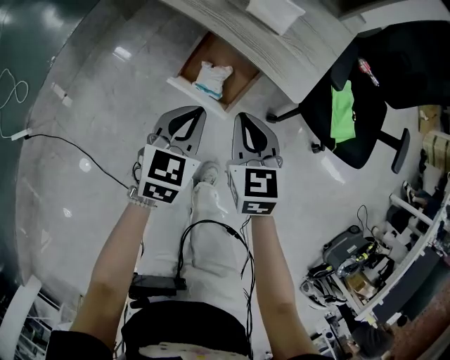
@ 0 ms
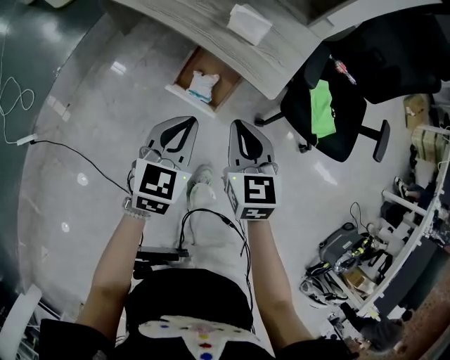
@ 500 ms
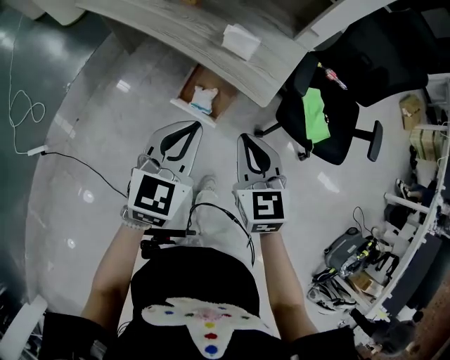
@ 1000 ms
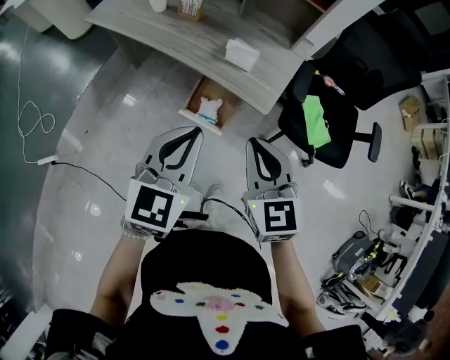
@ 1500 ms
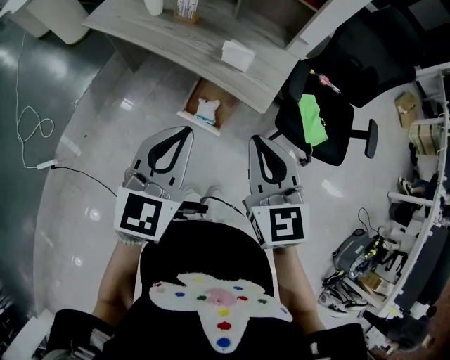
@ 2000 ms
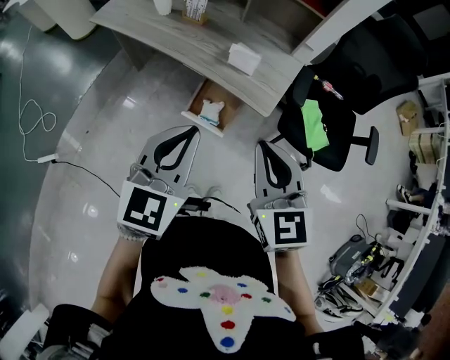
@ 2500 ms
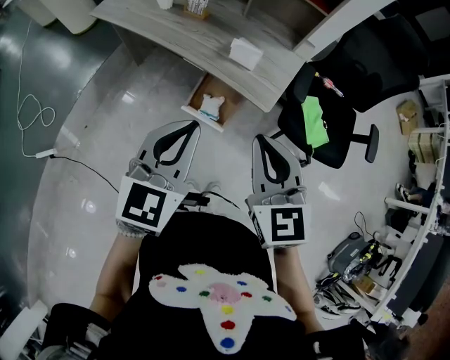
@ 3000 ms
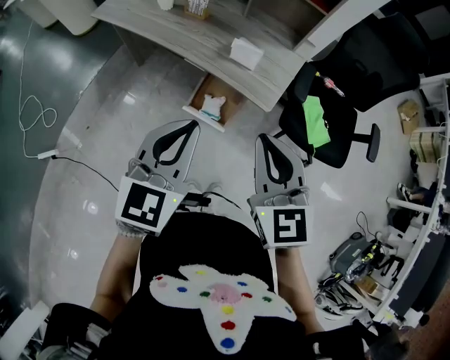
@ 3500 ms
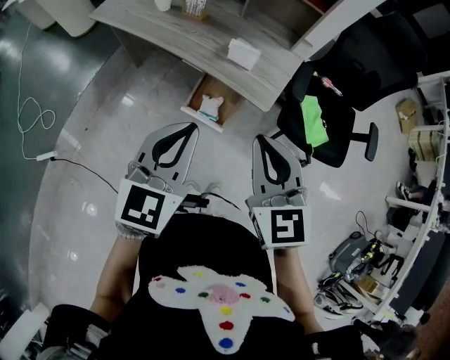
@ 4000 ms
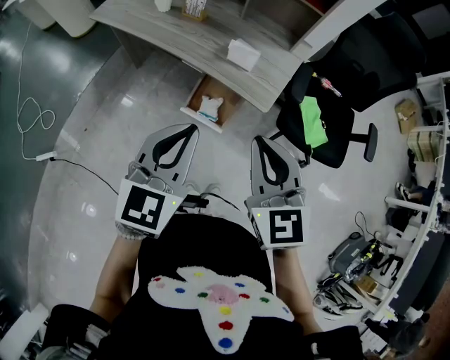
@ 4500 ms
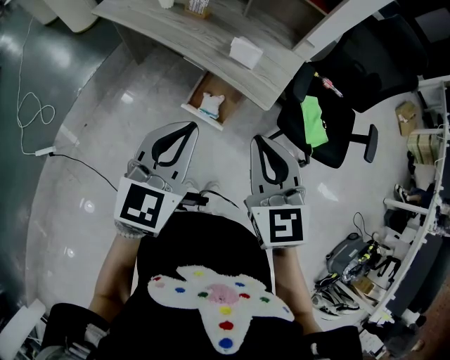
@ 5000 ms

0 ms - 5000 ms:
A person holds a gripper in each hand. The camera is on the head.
0 ms - 2500 ms: The grippers both shift upward by some 30 cm. The left gripper turns by approximately 20 degrees.
2500 ms - 5000 ms: Both grippers stay about where they are.

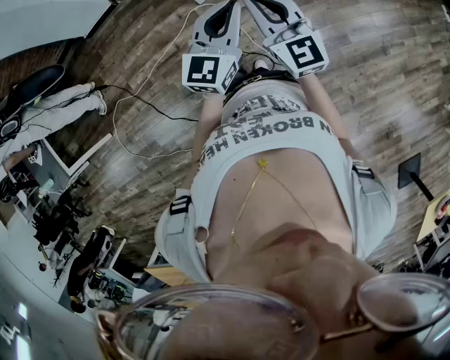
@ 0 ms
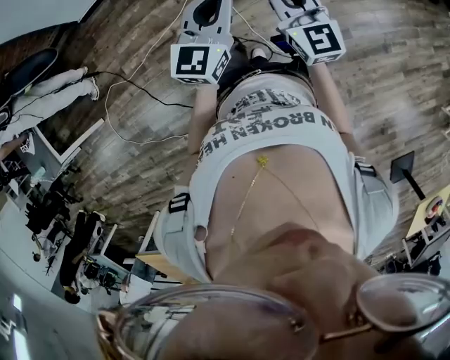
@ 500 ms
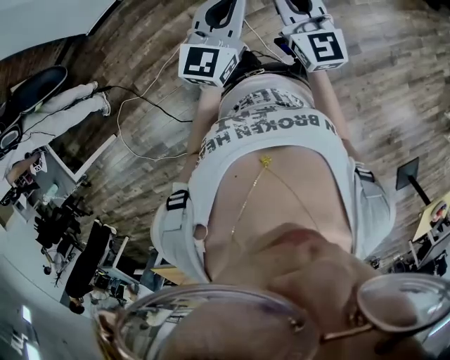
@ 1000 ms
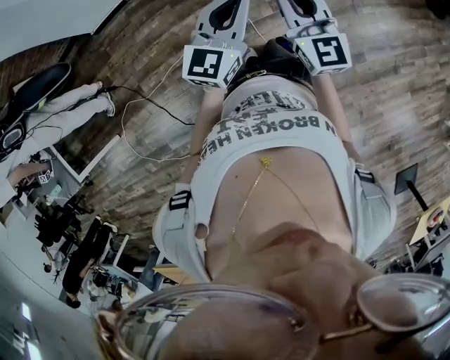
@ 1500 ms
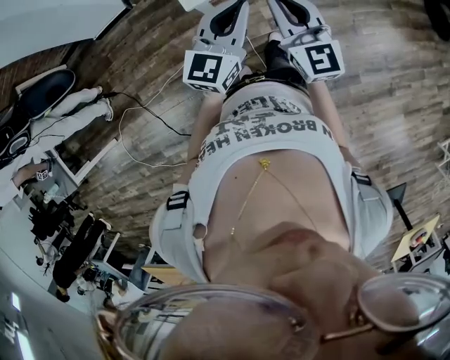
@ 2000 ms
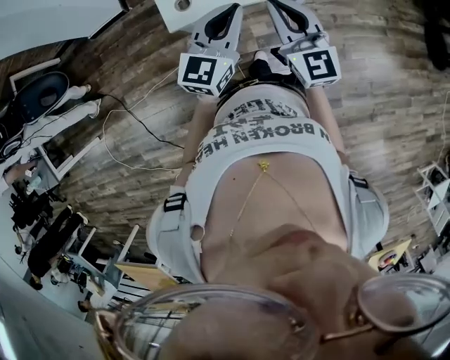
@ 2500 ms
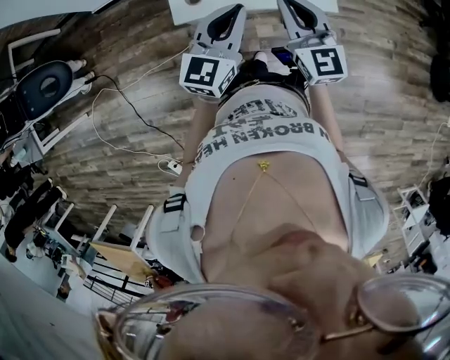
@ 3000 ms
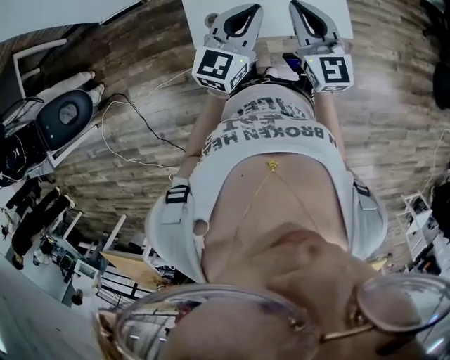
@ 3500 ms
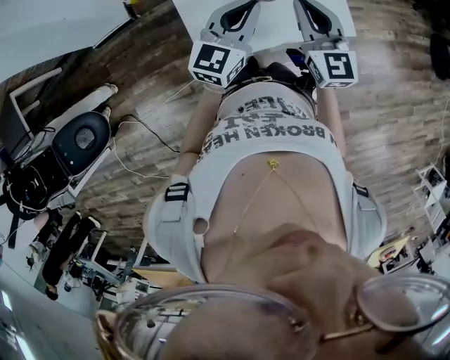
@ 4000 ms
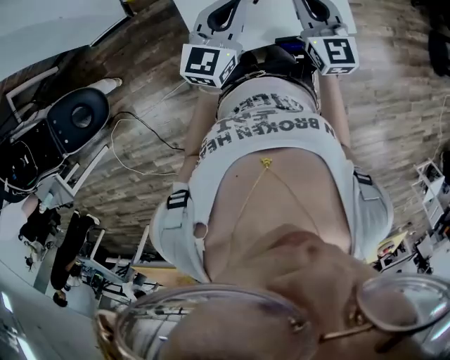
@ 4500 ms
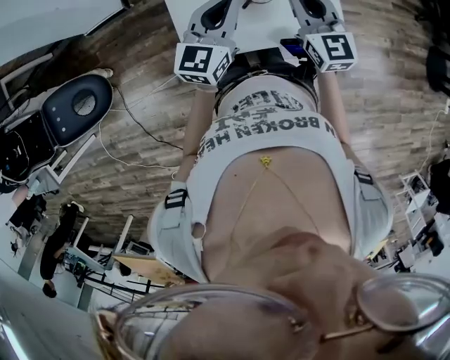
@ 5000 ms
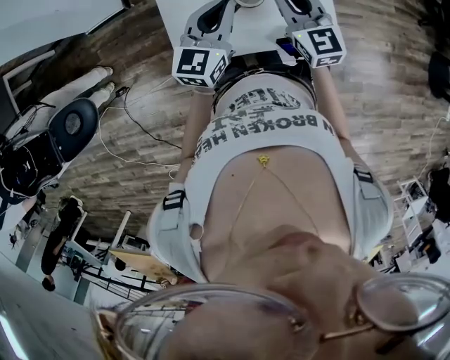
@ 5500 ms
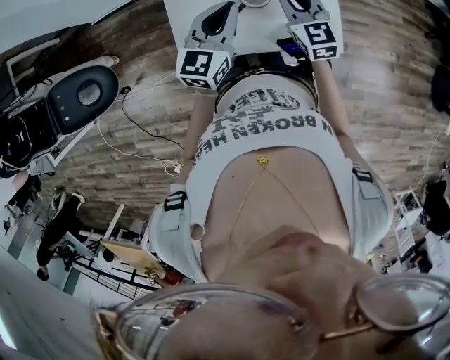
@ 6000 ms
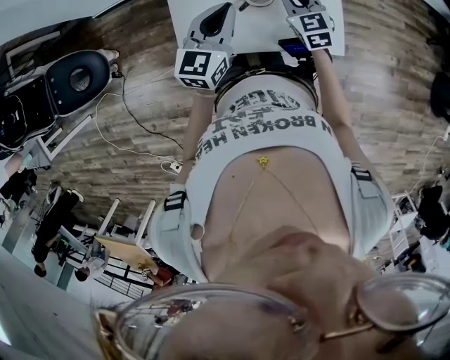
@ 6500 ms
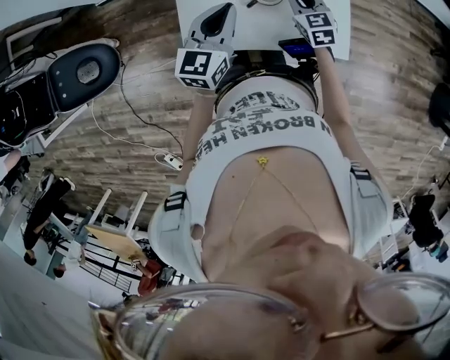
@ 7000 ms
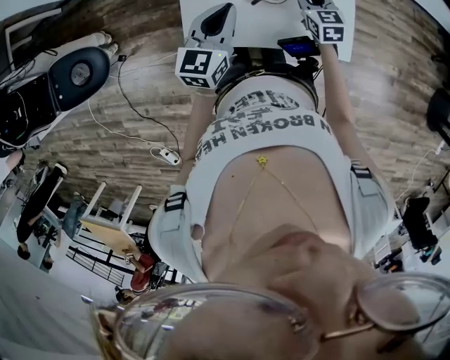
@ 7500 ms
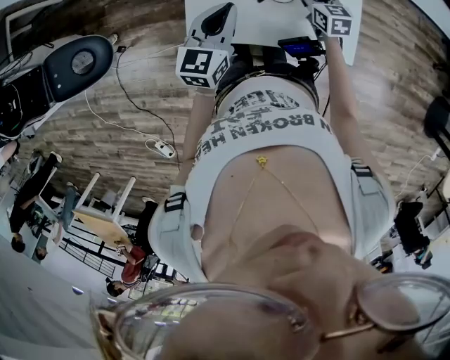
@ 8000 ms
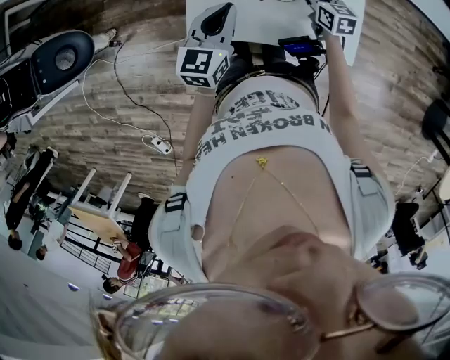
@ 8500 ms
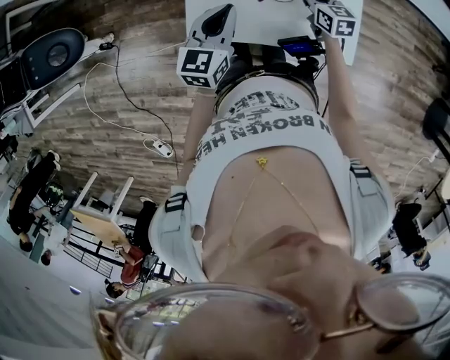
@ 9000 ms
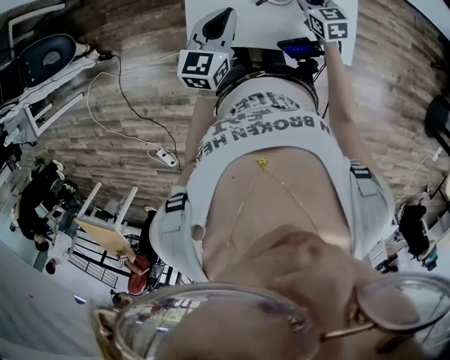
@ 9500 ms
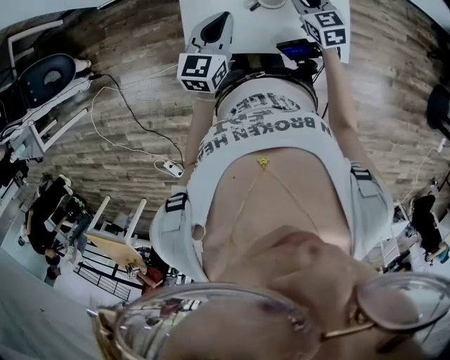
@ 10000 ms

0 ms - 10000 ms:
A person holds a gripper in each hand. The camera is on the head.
0 ms - 2000 ms: Both grippers travel together forward, approximately 30 cm.
2000 ms - 4000 ms: Both grippers travel together forward, some 35 cm.
4000 ms - 6000 ms: The left gripper goes some 5 cm to the left, while the right gripper is displaced downward and to the left by about 10 cm, and turns by about 20 degrees.
6000 ms - 8000 ms: The right gripper travels downward and forward by some 15 cm, swivels approximately 20 degrees, and opens up.
8000 ms - 10000 ms: The right gripper travels upward by roughly 5 cm, and closes its fingers.

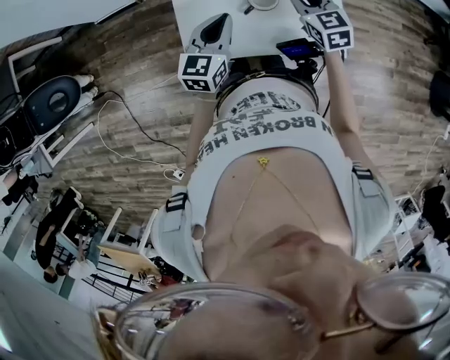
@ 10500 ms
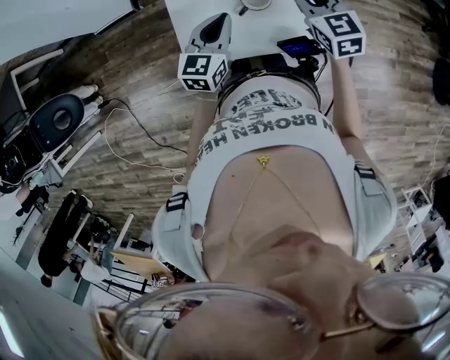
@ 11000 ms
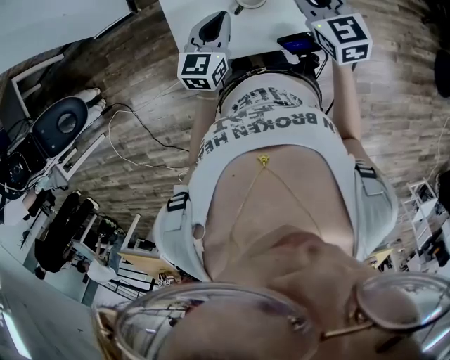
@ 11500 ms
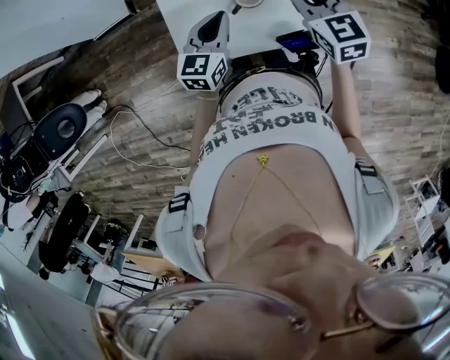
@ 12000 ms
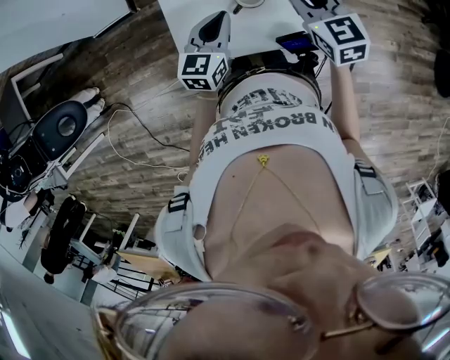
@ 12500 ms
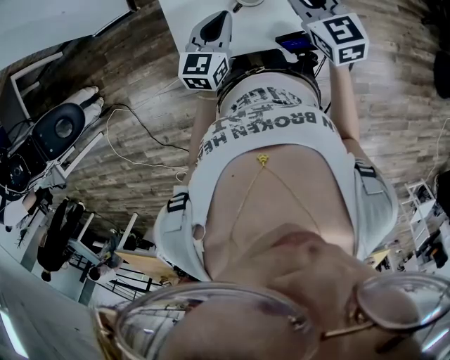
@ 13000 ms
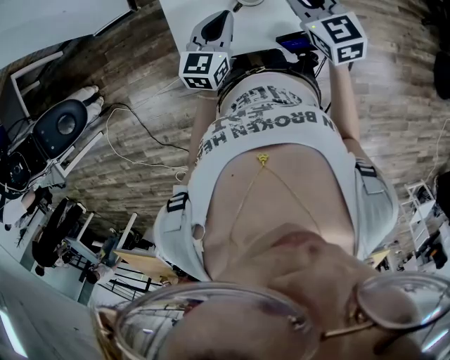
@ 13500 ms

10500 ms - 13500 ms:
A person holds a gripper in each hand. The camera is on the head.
10500 ms - 12000 ms: The left gripper is displaced to the right by roughly 5 cm. Meanwhile the right gripper goes approximately 10 cm upward.
12000 ms - 13500 ms: The grippers make only small movements.

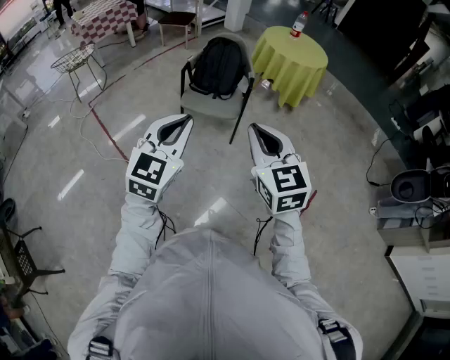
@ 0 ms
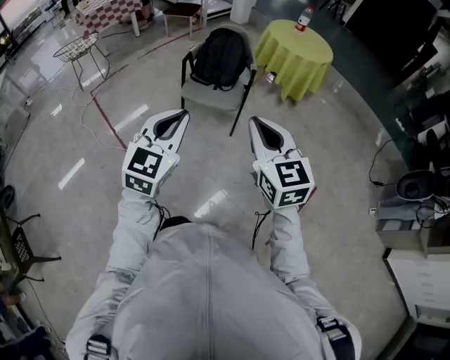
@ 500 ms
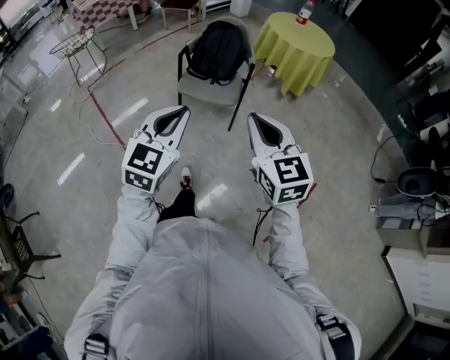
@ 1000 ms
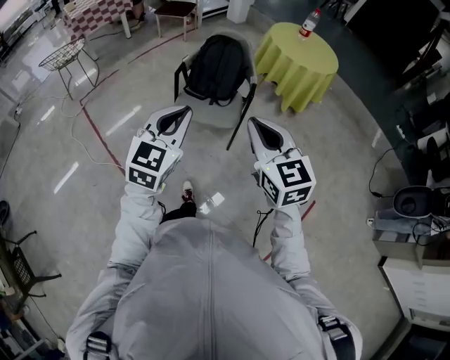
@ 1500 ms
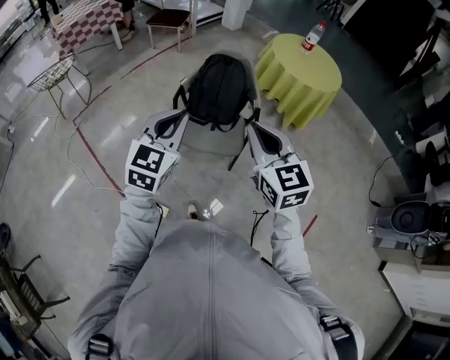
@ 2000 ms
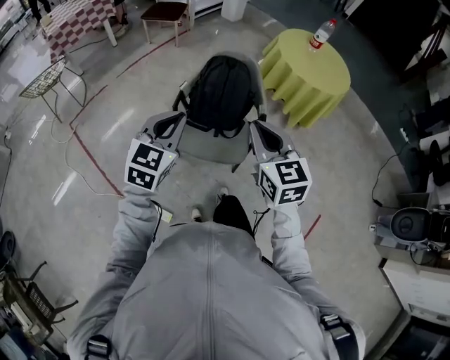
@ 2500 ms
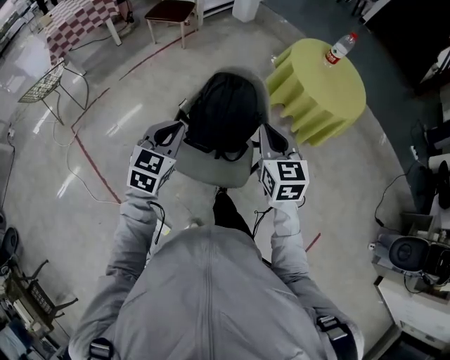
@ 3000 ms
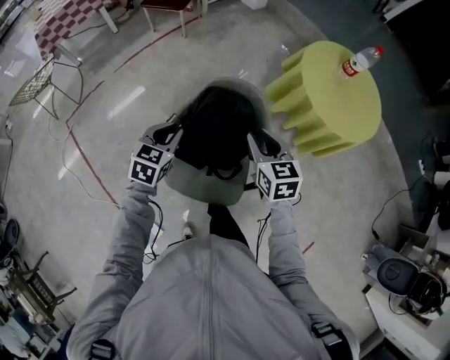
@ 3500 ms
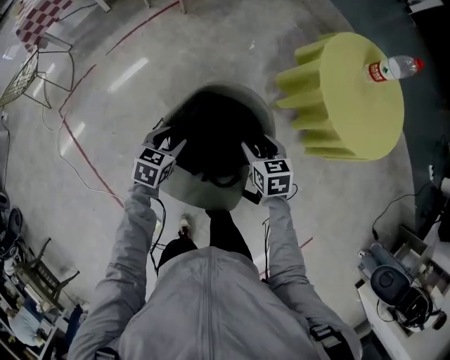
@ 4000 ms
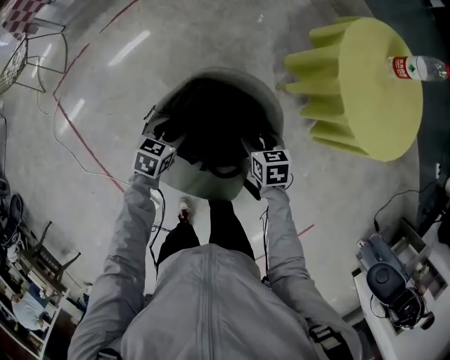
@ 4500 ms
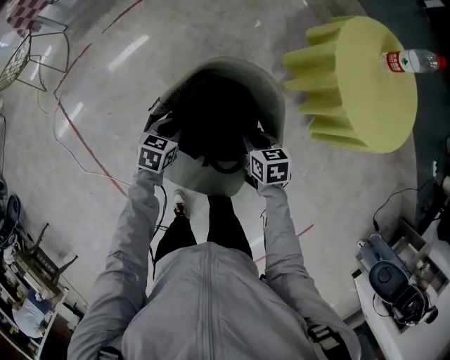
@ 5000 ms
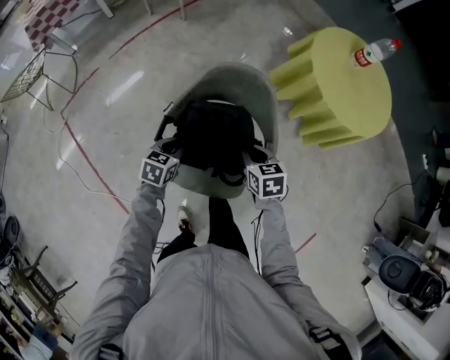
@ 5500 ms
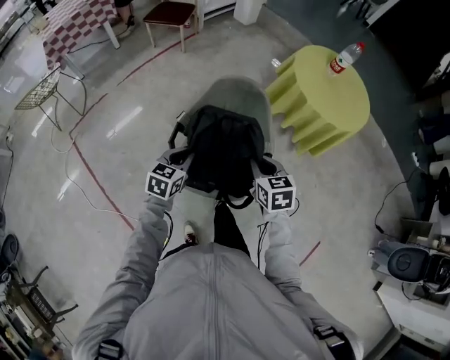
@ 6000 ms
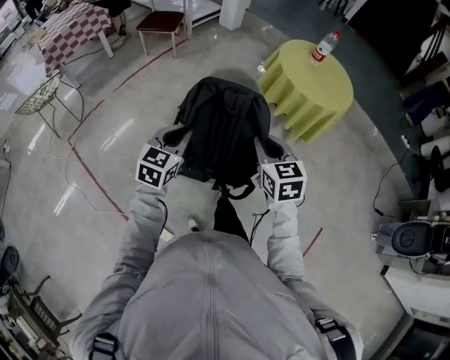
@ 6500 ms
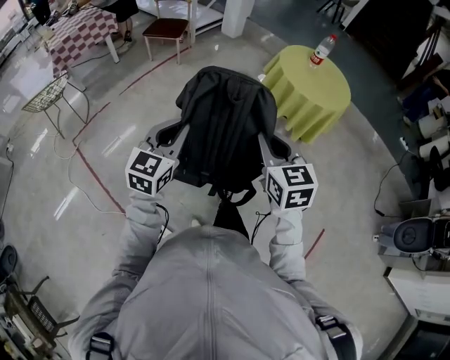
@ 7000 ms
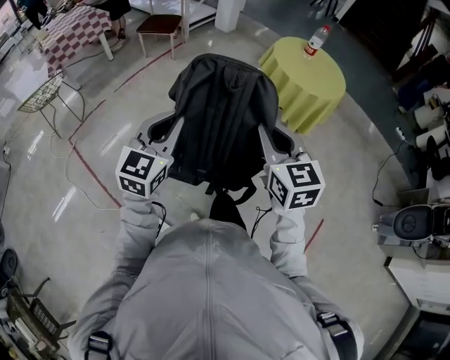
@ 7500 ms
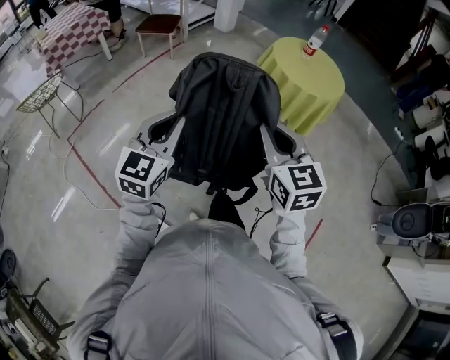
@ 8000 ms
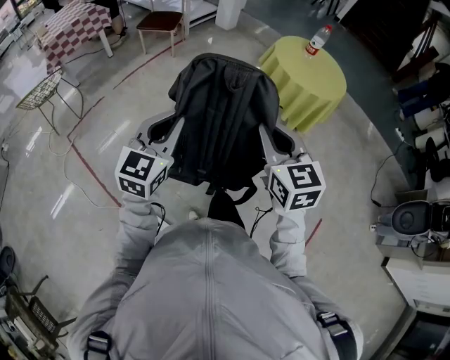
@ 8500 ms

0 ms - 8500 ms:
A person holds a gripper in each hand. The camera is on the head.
0 ms - 2000 ms: The two grippers go roughly 30 cm forward.
2000 ms - 4000 ms: Both grippers are carried forward, approximately 50 cm. The grippers both shift downward by approximately 35 cm. The left gripper points its fingers roughly 40 degrees further downward, and opens up. Meanwhile the right gripper tilts its fingers approximately 40 degrees downward, and opens its fingers.
4000 ms - 6500 ms: The left gripper travels upward and backward by approximately 30 cm, swivels roughly 30 degrees, and closes up. Meanwhile the right gripper moves backward and upward, approximately 35 cm, turns by roughly 30 degrees, and closes up.
6500 ms - 8500 ms: Both grippers move upward and backward, some 15 cm.
